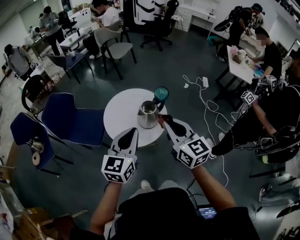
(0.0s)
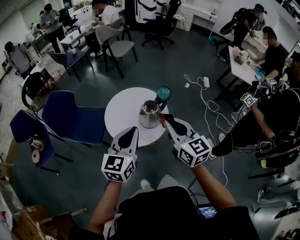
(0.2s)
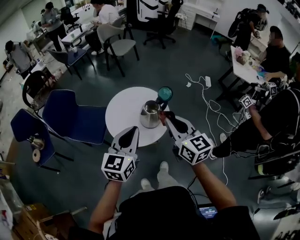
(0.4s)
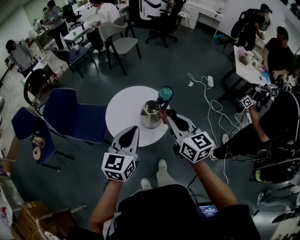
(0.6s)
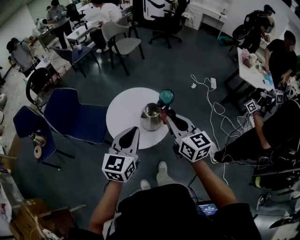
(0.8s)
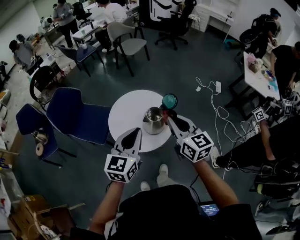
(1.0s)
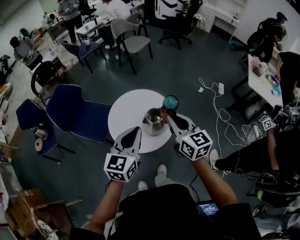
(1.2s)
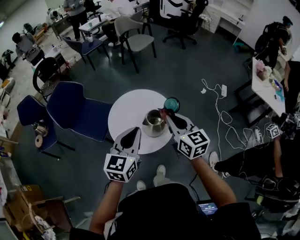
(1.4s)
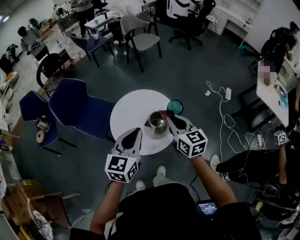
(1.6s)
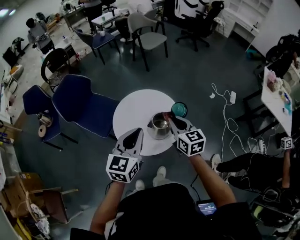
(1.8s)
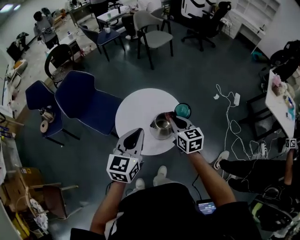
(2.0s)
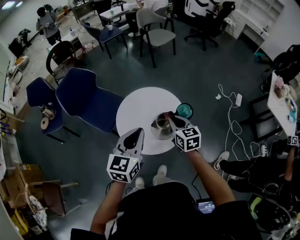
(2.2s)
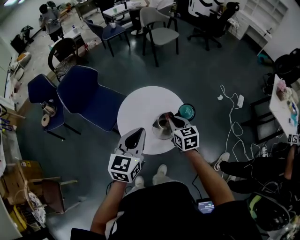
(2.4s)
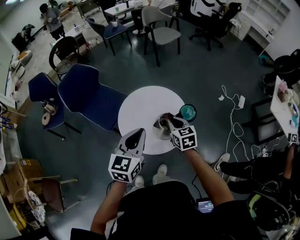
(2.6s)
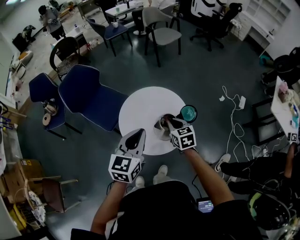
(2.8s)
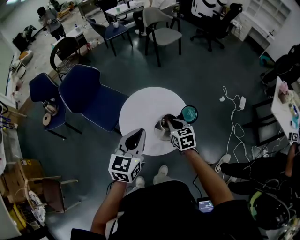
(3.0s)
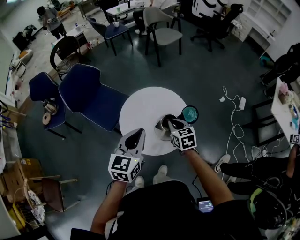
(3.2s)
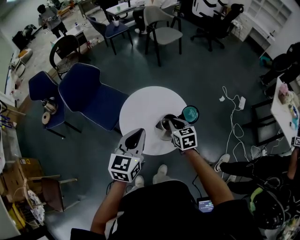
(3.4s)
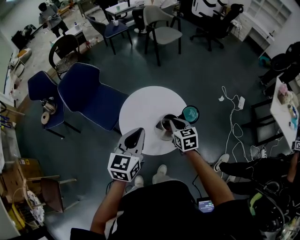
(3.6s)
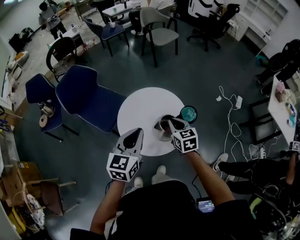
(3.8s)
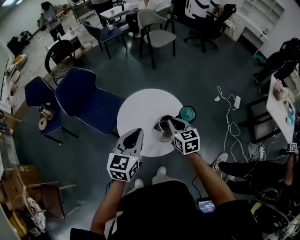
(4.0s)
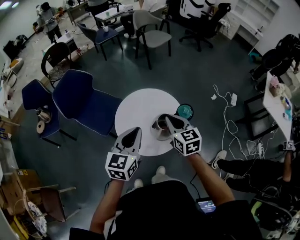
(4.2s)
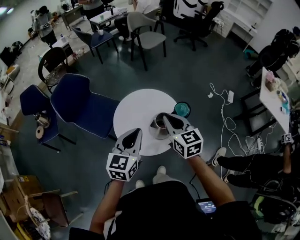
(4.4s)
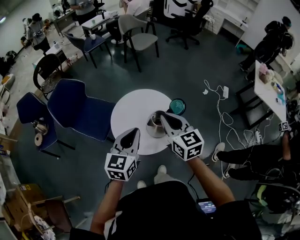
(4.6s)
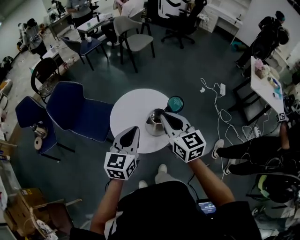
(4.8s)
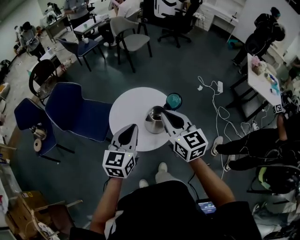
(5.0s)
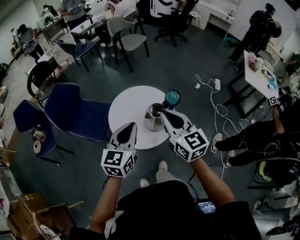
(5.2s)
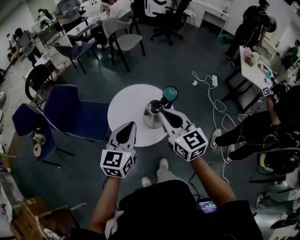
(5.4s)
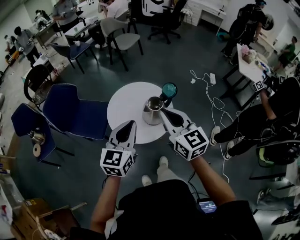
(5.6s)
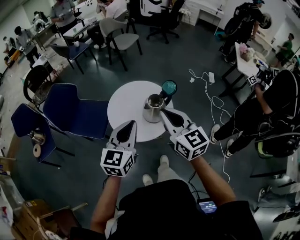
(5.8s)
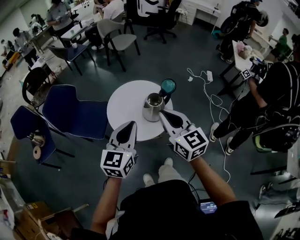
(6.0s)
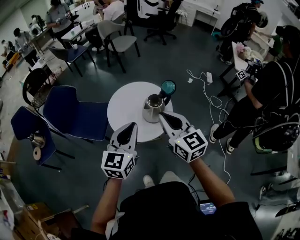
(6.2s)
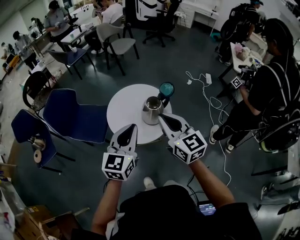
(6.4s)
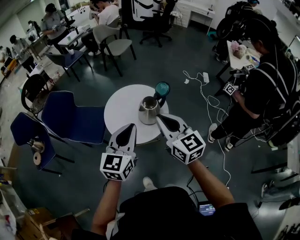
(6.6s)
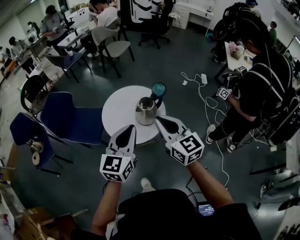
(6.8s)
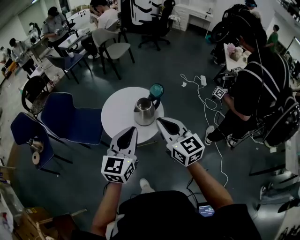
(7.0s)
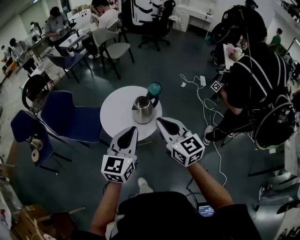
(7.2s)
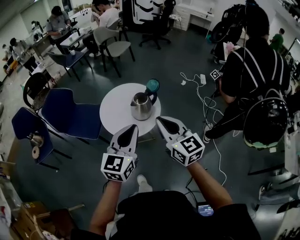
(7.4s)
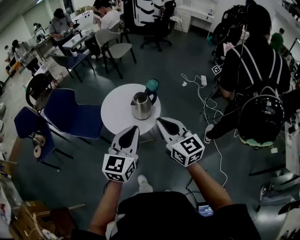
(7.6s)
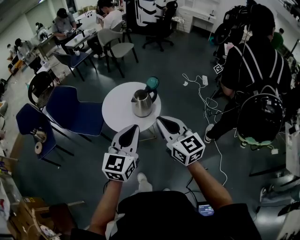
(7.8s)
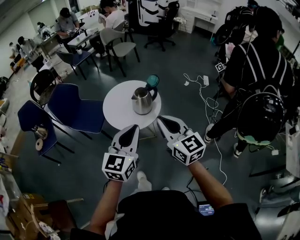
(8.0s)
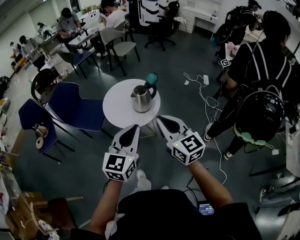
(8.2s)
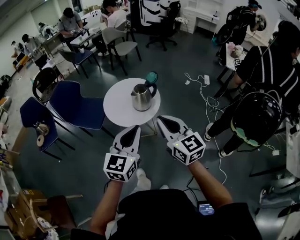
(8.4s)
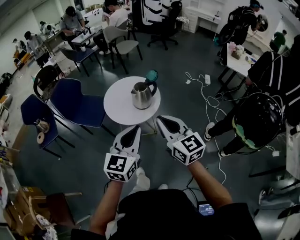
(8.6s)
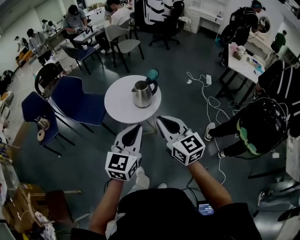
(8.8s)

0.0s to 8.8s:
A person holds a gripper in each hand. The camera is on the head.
0.0s to 1.4s: Both grippers travel together forward, about 15 cm.
1.4s to 3.0s: The right gripper heads downward and forward, covering about 20 cm, and changes its angle by roughly 30 degrees. Meanwhile the left gripper goes some 5 cm forward.
3.0s to 4.4s: The right gripper moves upward, approximately 15 cm.
4.4s to 5.8s: The left gripper travels backward by some 10 cm; the right gripper is displaced backward and upward by approximately 20 cm.
5.8s to 7.4s: Both grippers travel together backward and to the right, about 15 cm.
7.4s to 8.8s: Both grippers travel together backward, some 15 cm.

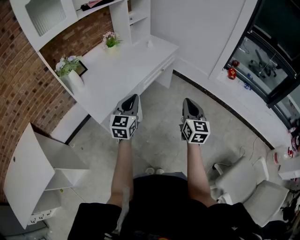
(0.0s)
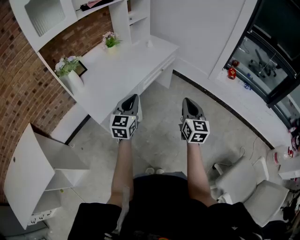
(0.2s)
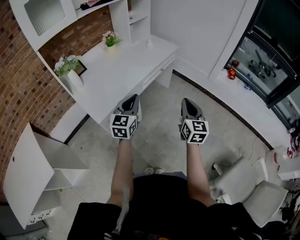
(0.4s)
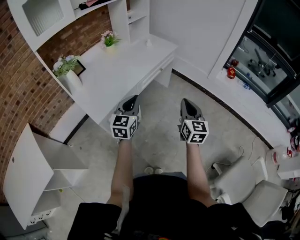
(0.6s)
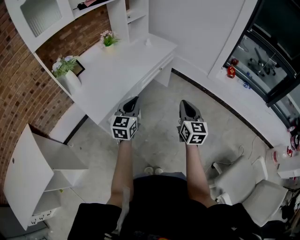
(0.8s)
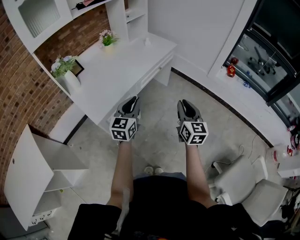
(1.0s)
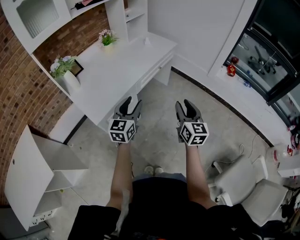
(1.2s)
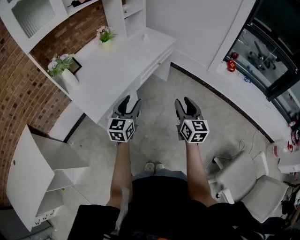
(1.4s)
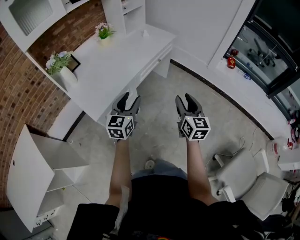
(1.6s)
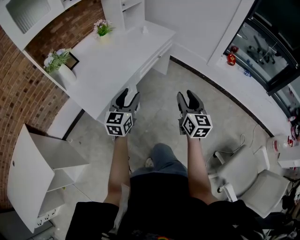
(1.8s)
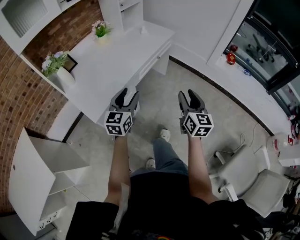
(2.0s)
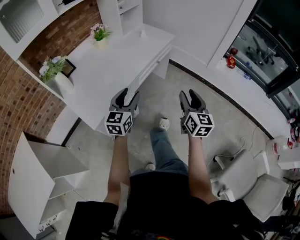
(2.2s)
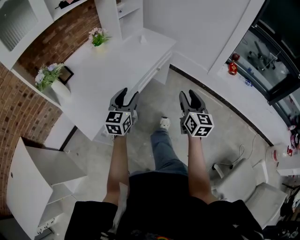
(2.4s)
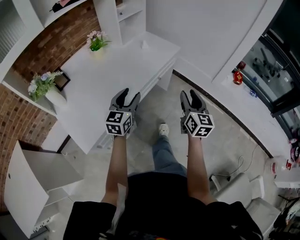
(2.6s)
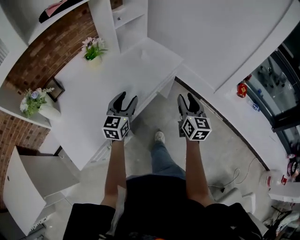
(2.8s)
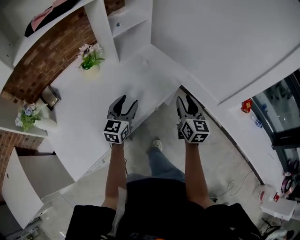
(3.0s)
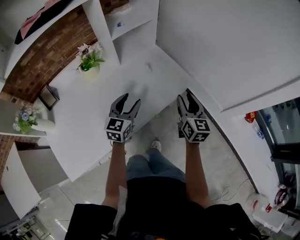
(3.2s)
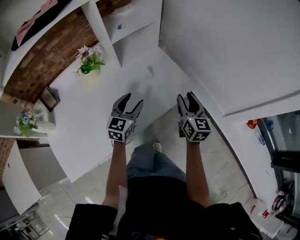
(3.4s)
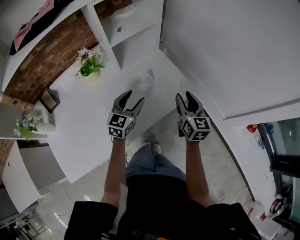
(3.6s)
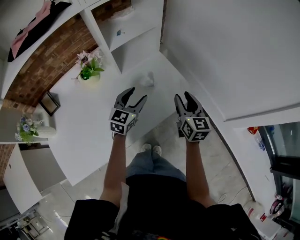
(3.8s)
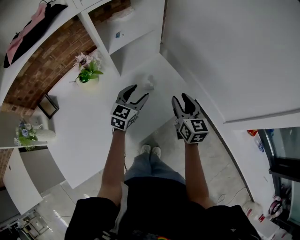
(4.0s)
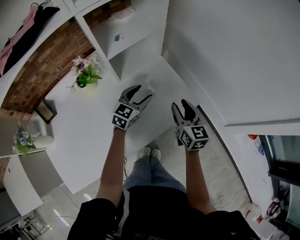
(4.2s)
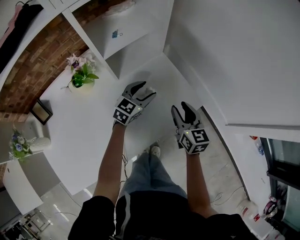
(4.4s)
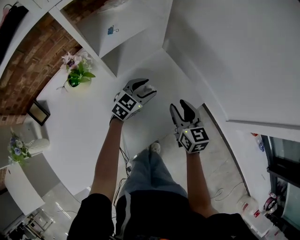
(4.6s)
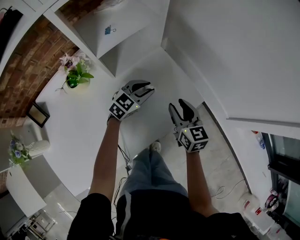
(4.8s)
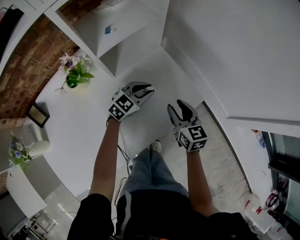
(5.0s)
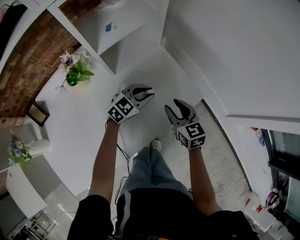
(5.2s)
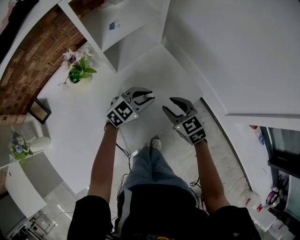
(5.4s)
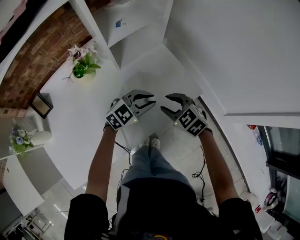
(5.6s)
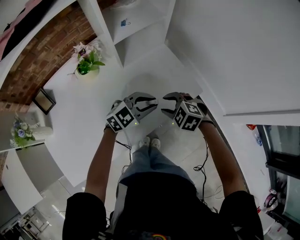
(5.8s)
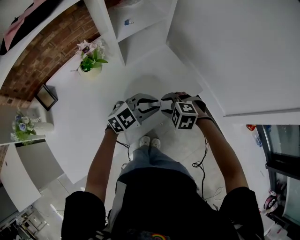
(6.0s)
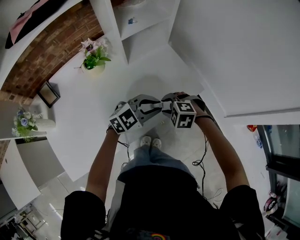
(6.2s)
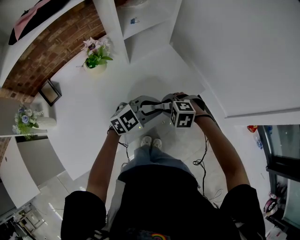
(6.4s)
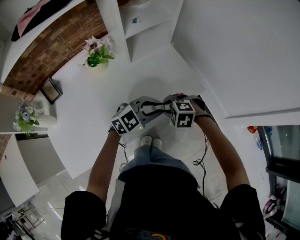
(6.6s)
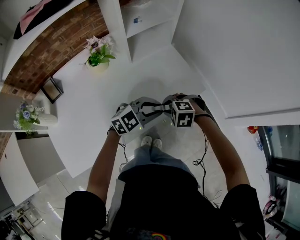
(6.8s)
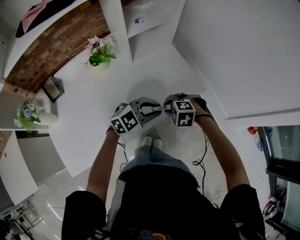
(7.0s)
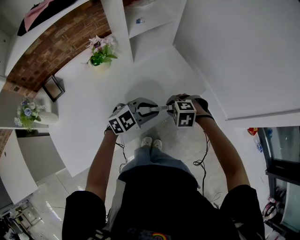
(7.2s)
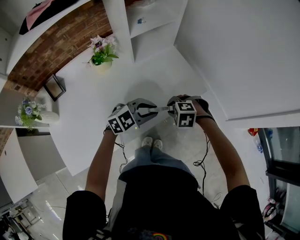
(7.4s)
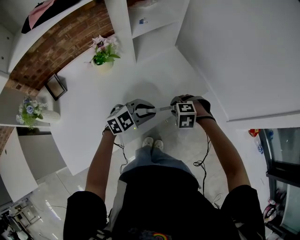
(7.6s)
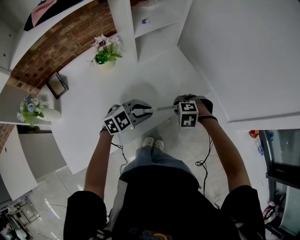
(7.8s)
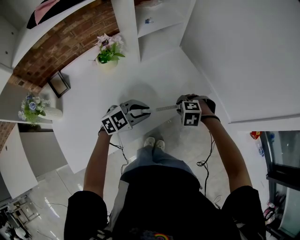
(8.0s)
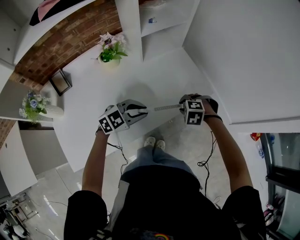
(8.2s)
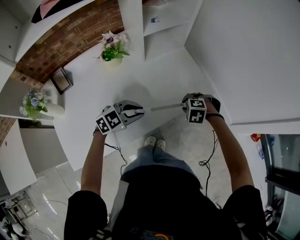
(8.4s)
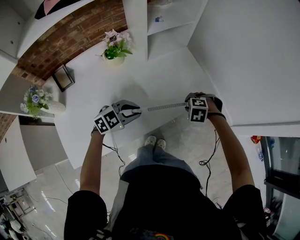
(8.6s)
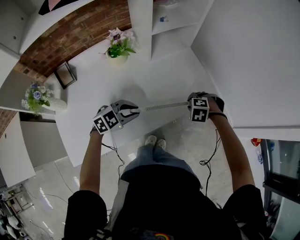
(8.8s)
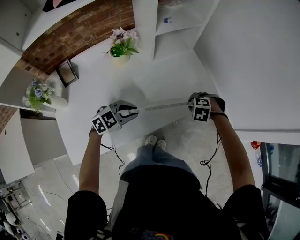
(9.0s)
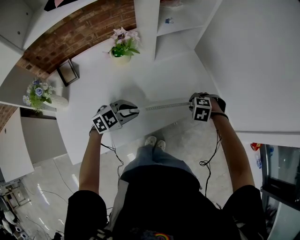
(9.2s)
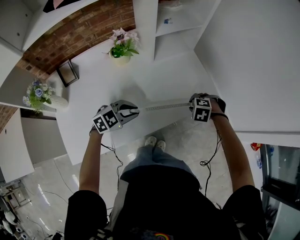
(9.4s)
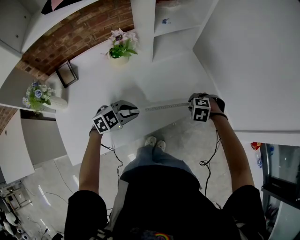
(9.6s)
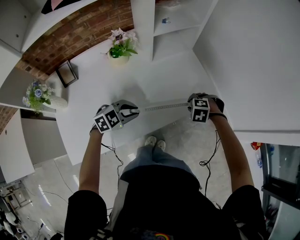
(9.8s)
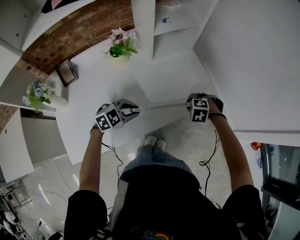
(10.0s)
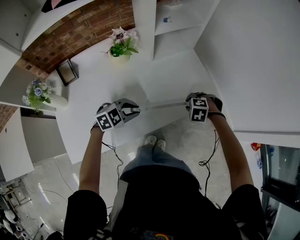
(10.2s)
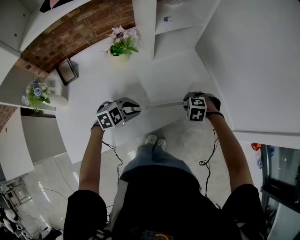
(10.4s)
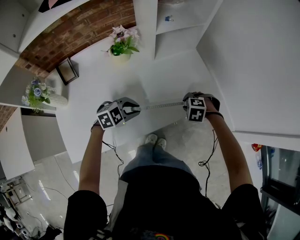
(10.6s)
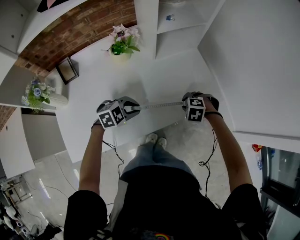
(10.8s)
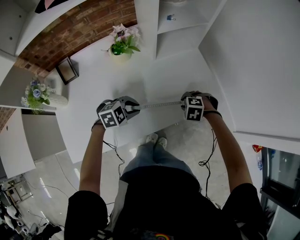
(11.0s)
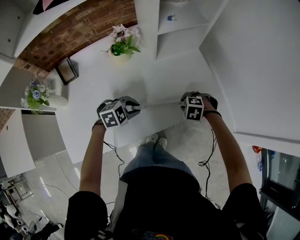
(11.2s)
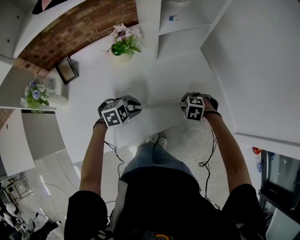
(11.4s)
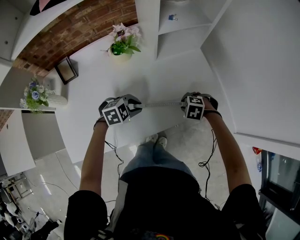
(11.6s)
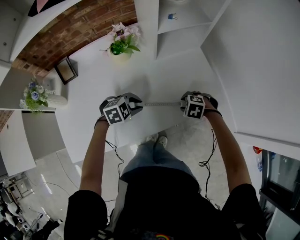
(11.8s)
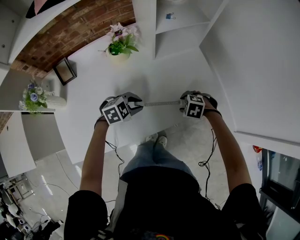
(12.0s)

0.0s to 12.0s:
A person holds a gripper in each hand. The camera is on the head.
0.0s to 1.6s: The right gripper opens up. Meanwhile the left gripper opens its fingers.
1.6s to 3.0s: The two grippers travel together, forward, approximately 50 cm.
3.0s to 4.4s: The two grippers go approximately 25 cm forward. The left gripper changes its angle by roughly 20 degrees.
4.4s to 6.0s: The left gripper moves roughly 20 cm, turns by about 30 degrees, and closes. Meanwhile the right gripper shifts by roughly 15 cm, and tips its fingers downward by roughly 40 degrees.
6.0s to 7.6s: The left gripper shifts by some 5 cm.
7.6s to 9.0s: The right gripper changes place by approximately 5 cm. Meanwhile the left gripper moves some 15 cm.
9.0s to 10.4s: The grippers make only small movements.
10.4s to 12.0s: The right gripper opens. Meanwhile the left gripper shifts by roughly 5 cm.

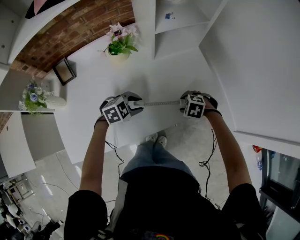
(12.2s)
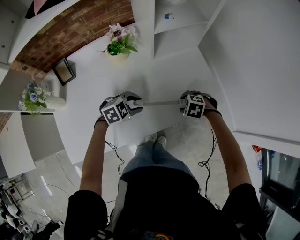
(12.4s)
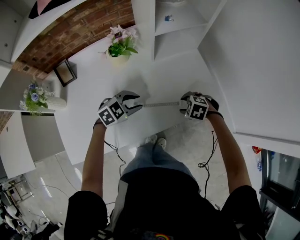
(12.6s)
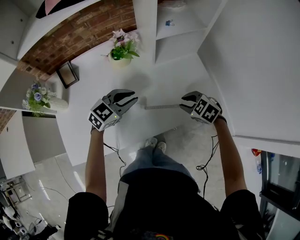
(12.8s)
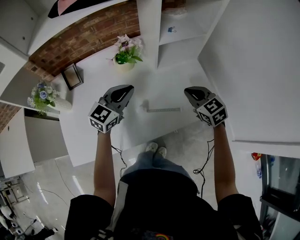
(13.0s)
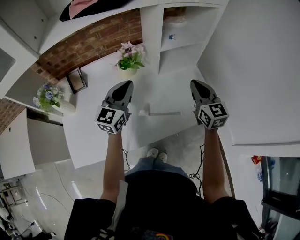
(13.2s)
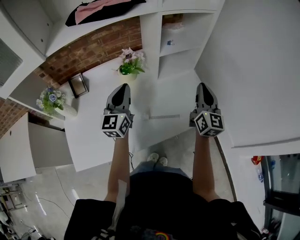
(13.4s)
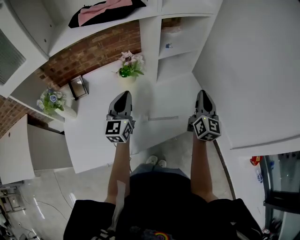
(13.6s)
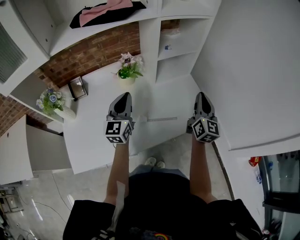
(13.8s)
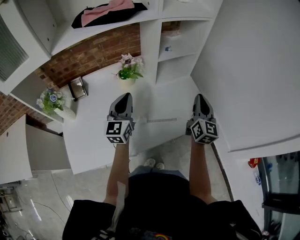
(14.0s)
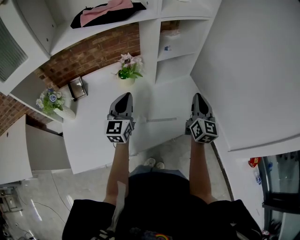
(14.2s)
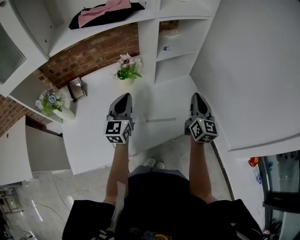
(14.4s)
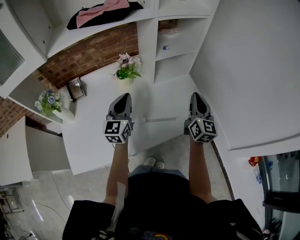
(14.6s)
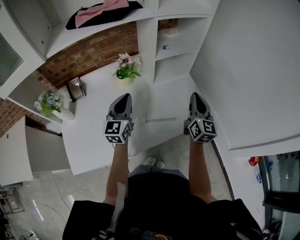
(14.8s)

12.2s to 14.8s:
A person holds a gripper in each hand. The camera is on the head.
12.2s to 13.4s: The two grippers go about 30 cm upward. The left gripper tilts its fingers about 60 degrees upward, and closes its fingers; the right gripper angles its fingers upward, by about 80 degrees, and closes up.
13.4s to 14.8s: The grippers move only a little.
